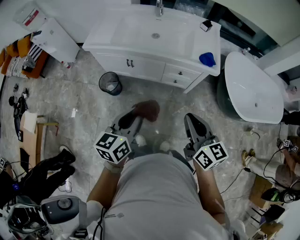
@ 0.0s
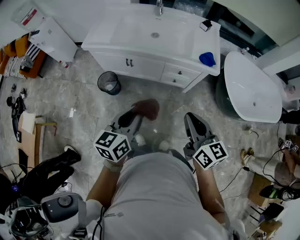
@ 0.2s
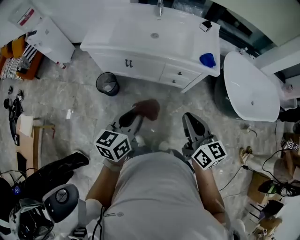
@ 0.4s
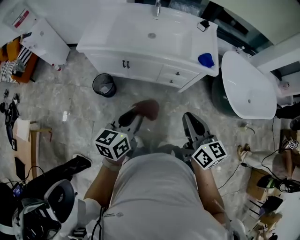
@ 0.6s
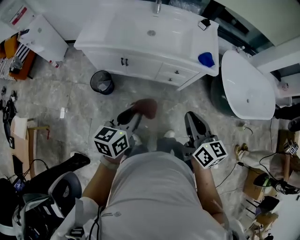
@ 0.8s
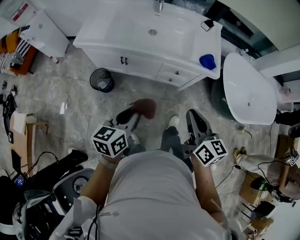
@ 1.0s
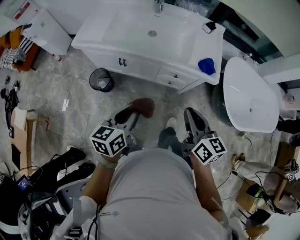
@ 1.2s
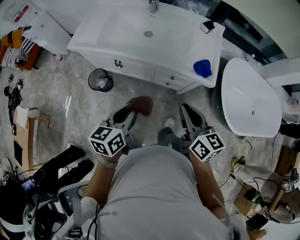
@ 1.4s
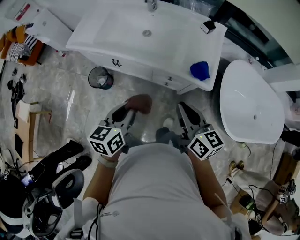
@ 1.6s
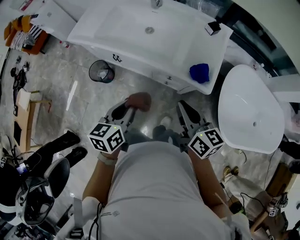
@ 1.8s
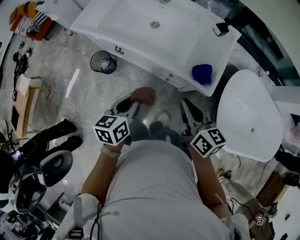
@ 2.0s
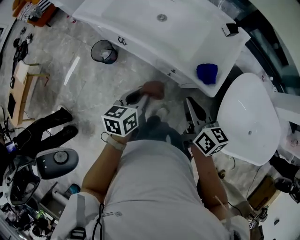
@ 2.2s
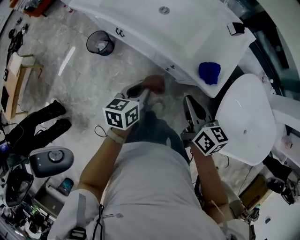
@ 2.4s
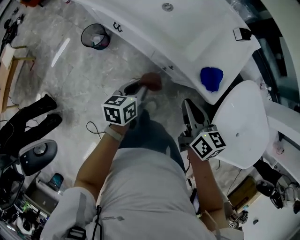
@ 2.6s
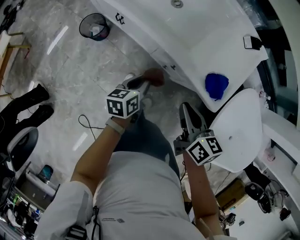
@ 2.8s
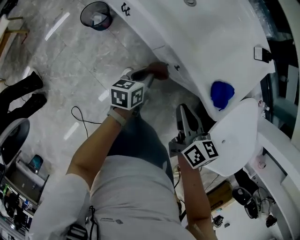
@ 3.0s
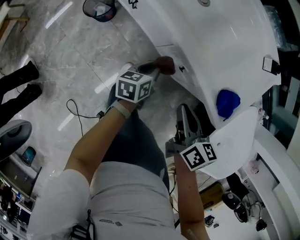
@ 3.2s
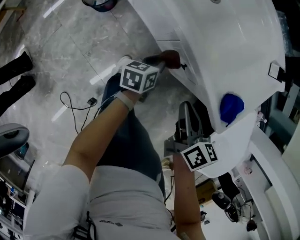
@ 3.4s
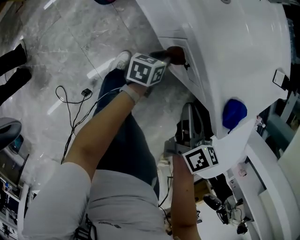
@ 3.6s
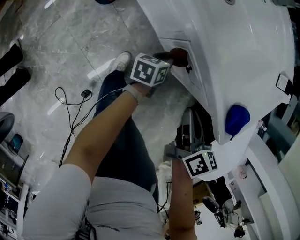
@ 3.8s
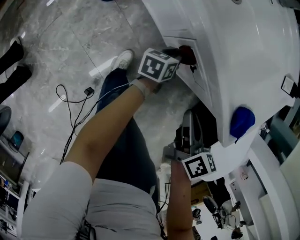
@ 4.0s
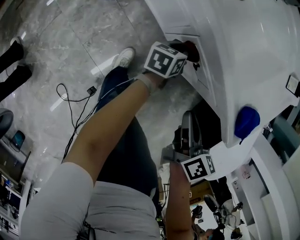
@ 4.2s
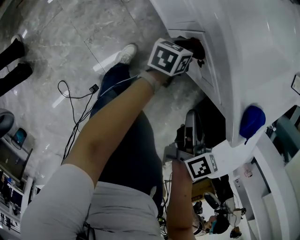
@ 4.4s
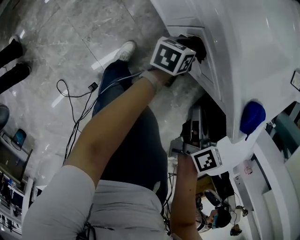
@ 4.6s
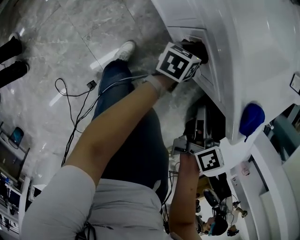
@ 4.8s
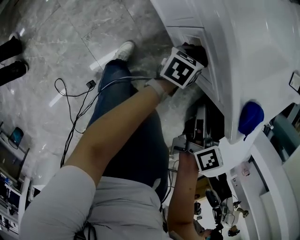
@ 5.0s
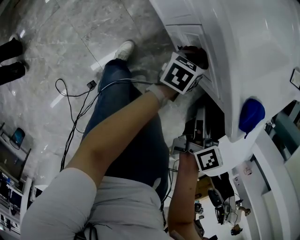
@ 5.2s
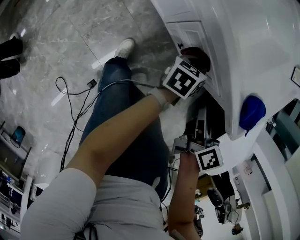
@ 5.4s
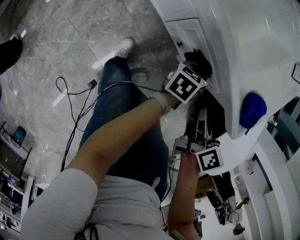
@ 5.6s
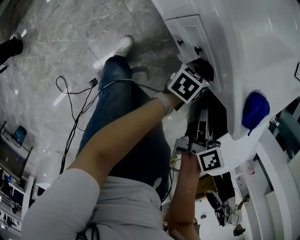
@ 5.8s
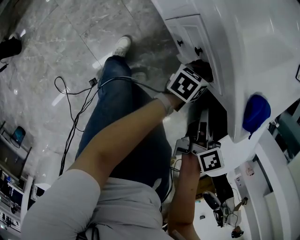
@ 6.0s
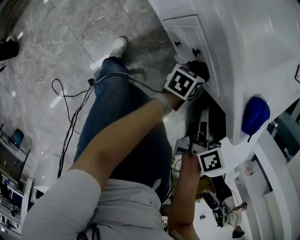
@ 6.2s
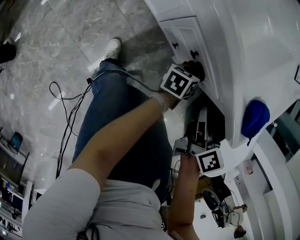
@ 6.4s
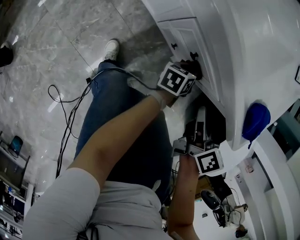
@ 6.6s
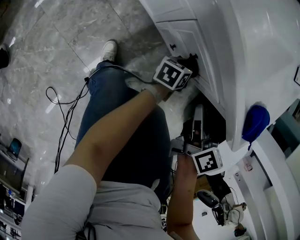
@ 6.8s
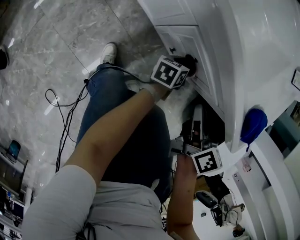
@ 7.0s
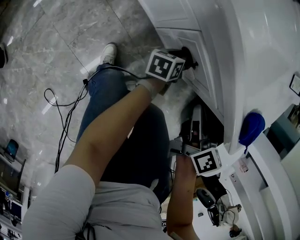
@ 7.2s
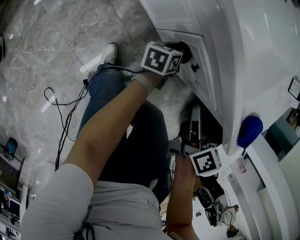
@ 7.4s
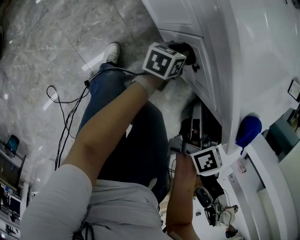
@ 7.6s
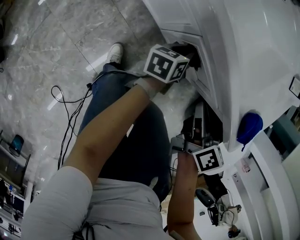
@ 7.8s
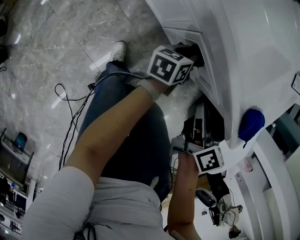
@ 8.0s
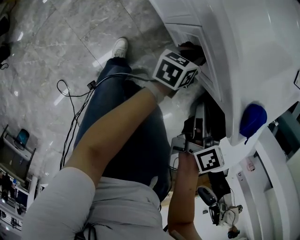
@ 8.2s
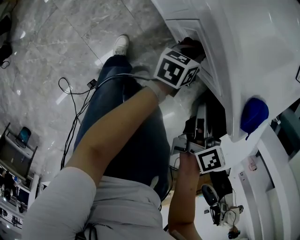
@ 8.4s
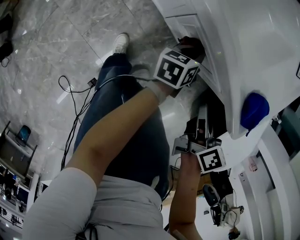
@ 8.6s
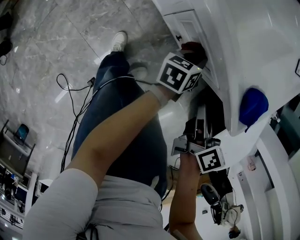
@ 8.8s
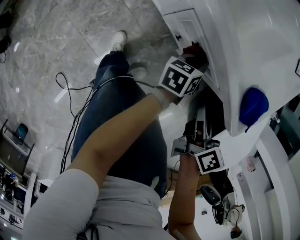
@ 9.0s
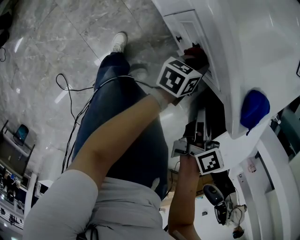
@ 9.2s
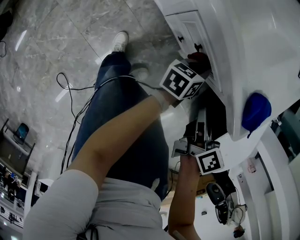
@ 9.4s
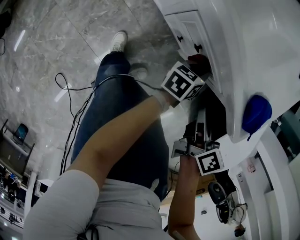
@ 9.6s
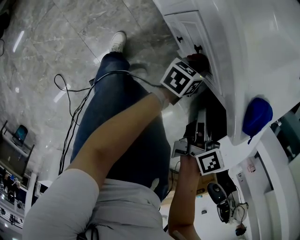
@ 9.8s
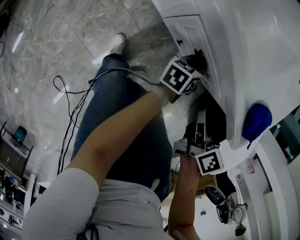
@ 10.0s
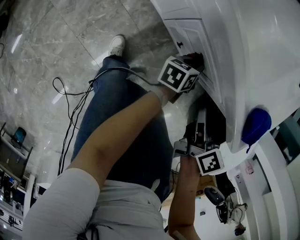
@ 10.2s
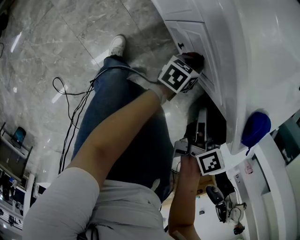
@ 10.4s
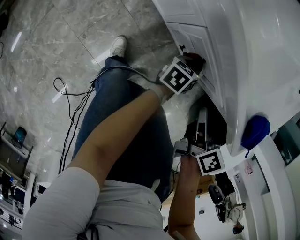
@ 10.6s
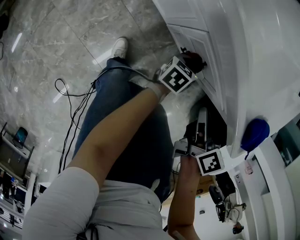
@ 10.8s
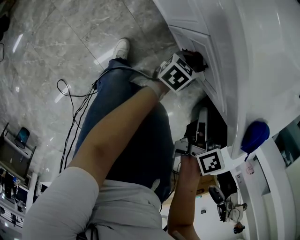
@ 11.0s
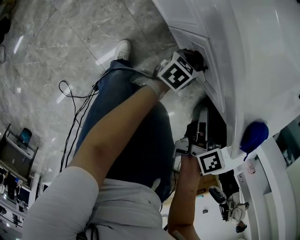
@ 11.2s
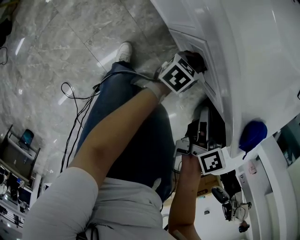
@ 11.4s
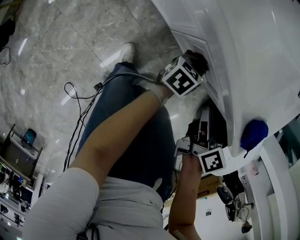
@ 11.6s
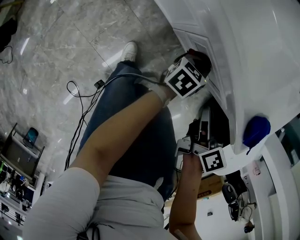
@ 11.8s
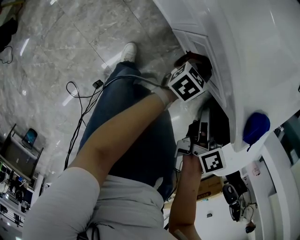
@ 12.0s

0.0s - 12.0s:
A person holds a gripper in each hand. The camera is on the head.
0.0s - 1.6s: The two grippers go roughly 20 cm forward and to the right.
1.6s - 3.0s: The left gripper travels downward and forward by roughly 30 cm, and turns by about 30 degrees; the right gripper goes about 20 cm downward and forward, and turns by roughly 30 degrees.
3.0s - 4.4s: The left gripper moves downward, forward and to the right, about 20 cm. The right gripper is displaced downward by some 15 cm.
4.4s - 6.0s: The right gripper shifts approximately 10 cm to the right, while the left gripper shifts approximately 15 cm to the right.
6.0s - 7.6s: The right gripper moves to the left, approximately 10 cm. Meanwhile the left gripper travels to the left and downward by about 15 cm.
7.6s - 9.0s: The left gripper goes some 15 cm to the right, upward and backward, while the right gripper moves to the right and backward, approximately 10 cm.
9.0s - 10.4s: The left gripper travels downward by approximately 10 cm; the right gripper ends up approximately 5 cm from where it was.
10.4s - 12.0s: The left gripper goes roughly 5 cm upward.

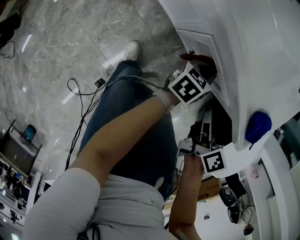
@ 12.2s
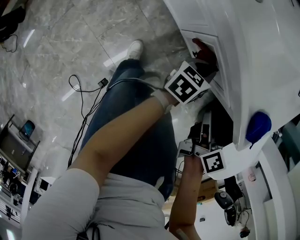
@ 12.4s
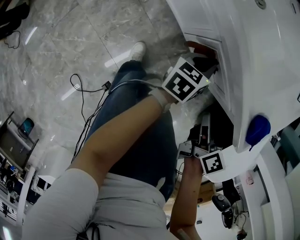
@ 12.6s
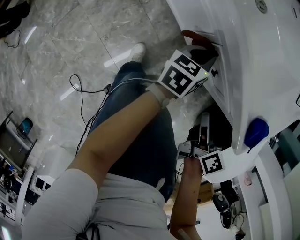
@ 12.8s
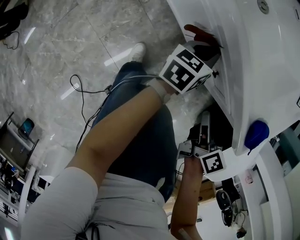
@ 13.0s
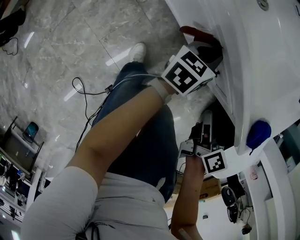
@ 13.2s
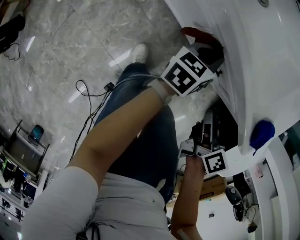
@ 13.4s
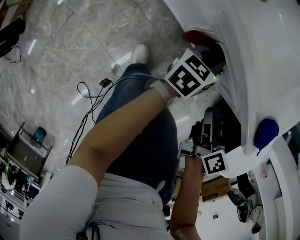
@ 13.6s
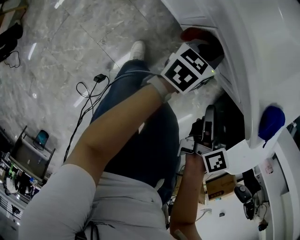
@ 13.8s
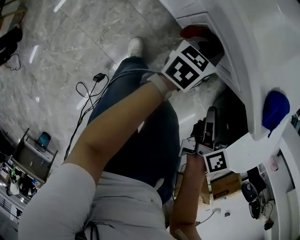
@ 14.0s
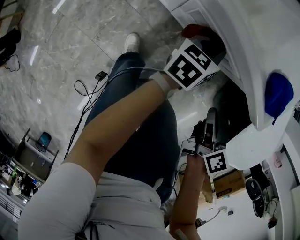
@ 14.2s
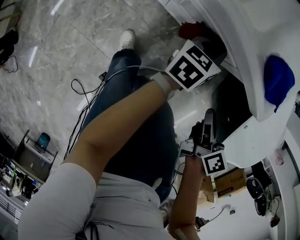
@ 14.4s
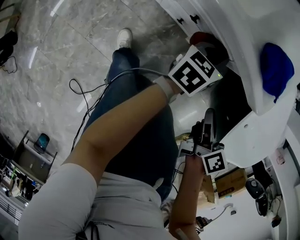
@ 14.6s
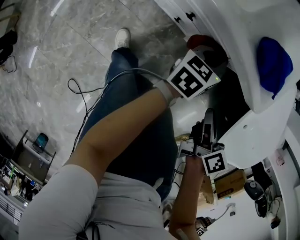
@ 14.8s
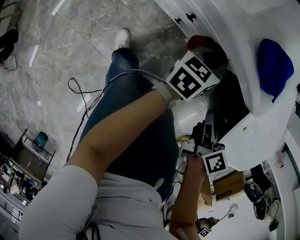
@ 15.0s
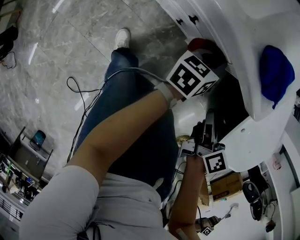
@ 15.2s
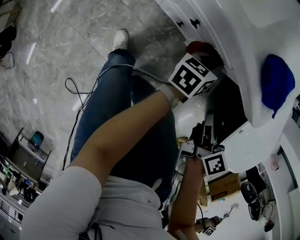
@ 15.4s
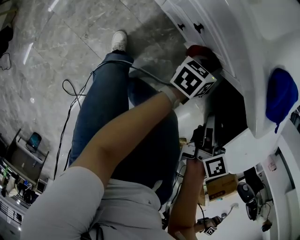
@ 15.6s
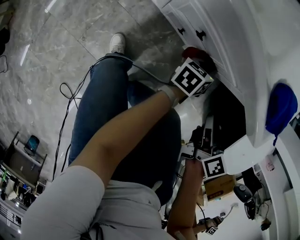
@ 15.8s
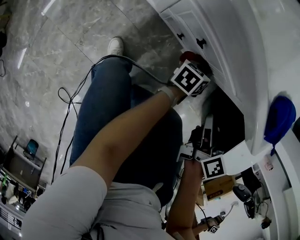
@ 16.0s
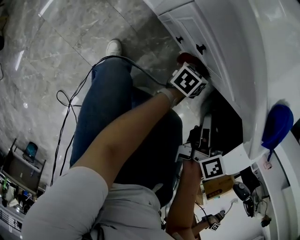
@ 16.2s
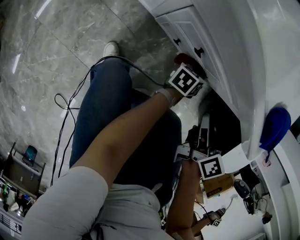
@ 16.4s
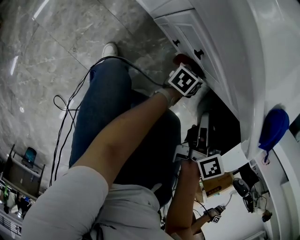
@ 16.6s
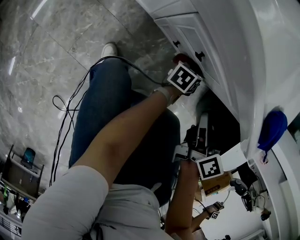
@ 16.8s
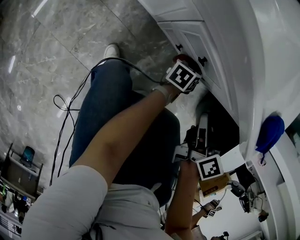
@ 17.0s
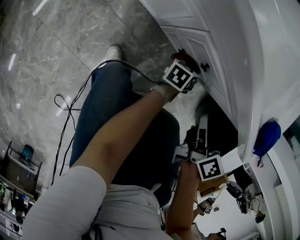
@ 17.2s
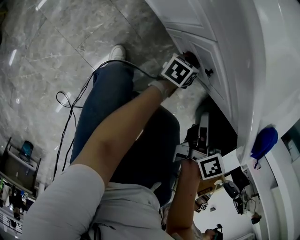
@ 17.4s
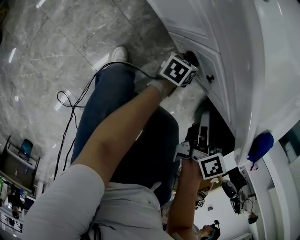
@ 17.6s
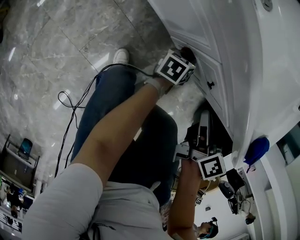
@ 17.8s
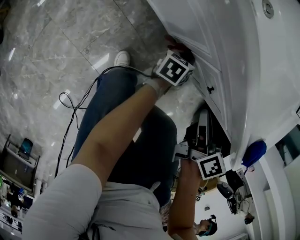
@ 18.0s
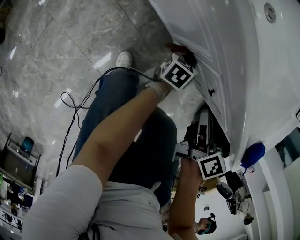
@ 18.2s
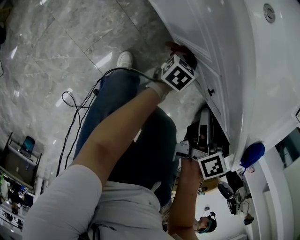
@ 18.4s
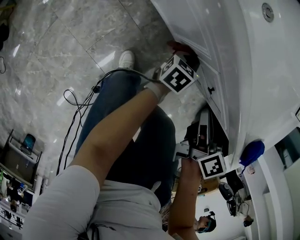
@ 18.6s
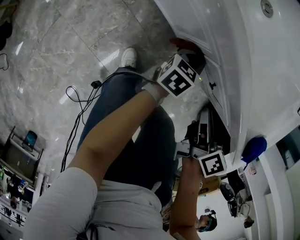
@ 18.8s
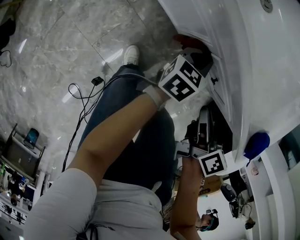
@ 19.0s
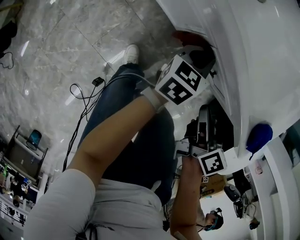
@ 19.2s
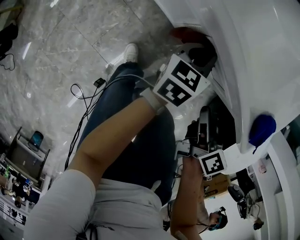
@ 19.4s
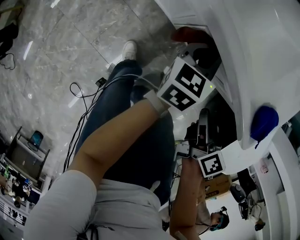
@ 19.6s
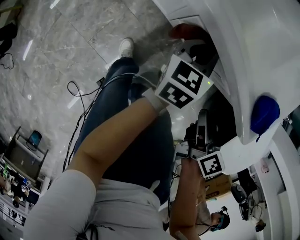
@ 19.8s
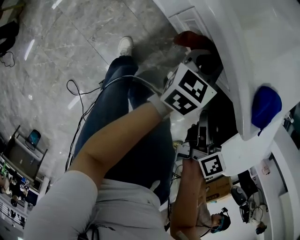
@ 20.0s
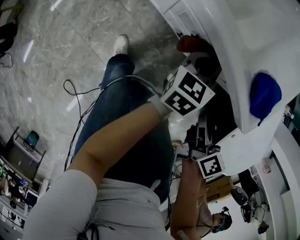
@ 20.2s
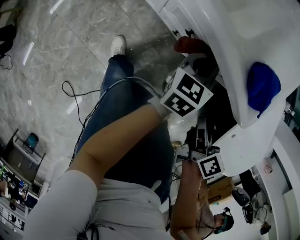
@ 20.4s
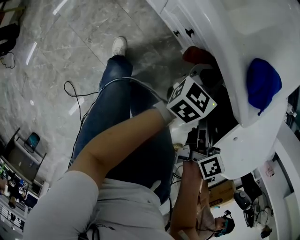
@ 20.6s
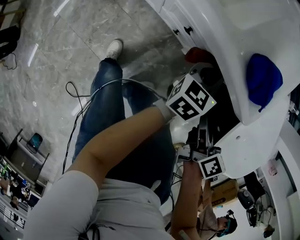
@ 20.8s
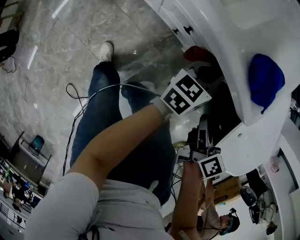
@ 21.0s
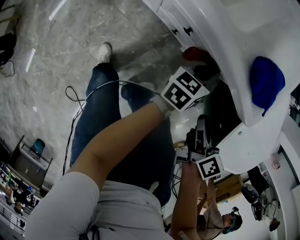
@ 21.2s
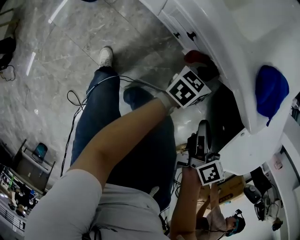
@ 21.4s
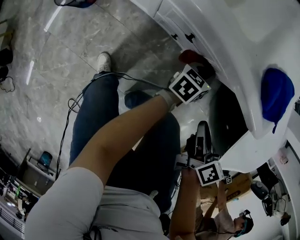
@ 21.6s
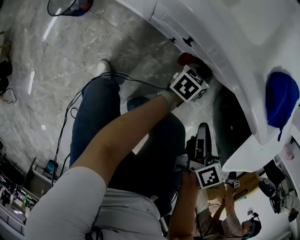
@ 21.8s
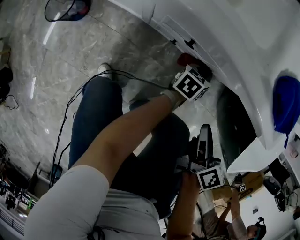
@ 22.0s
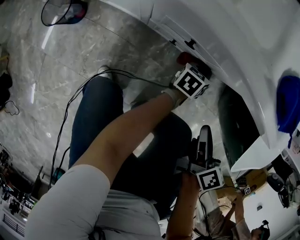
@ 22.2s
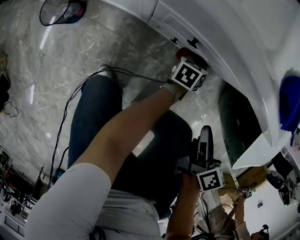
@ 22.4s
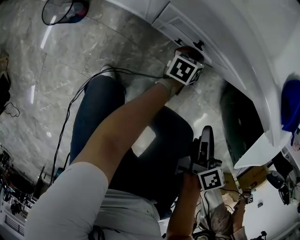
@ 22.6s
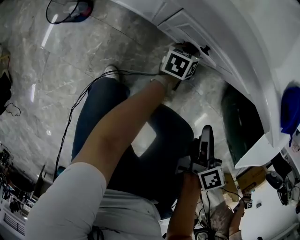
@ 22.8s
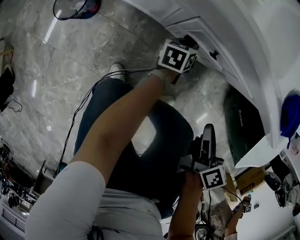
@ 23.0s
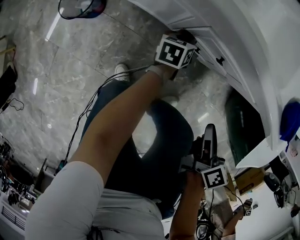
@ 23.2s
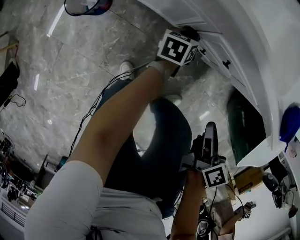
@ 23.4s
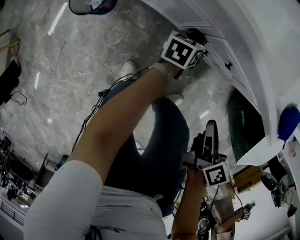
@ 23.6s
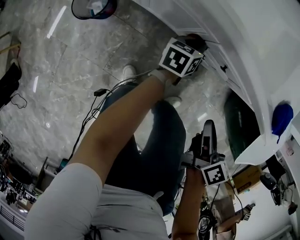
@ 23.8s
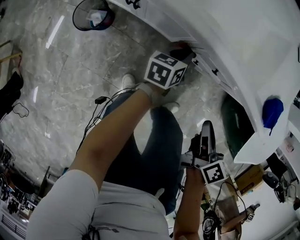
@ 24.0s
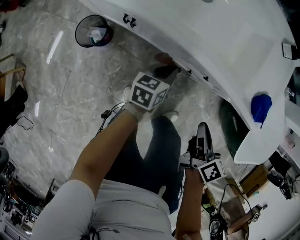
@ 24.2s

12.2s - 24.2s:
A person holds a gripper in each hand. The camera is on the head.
12.2s - 13.8s: The left gripper heads to the left, covering roughly 5 cm.
13.8s - 15.2s: Both grippers travel together to the right, some 20 cm.
15.2s - 16.6s: The left gripper shifts some 15 cm downward, while the right gripper moves to the left and forward, approximately 10 cm.
16.6s - 18.2s: The two grippers go roughly 20 cm to the left.
18.2s - 19.8s: The left gripper heads upward, covering some 20 cm, and changes its angle by approximately 30 degrees; the right gripper shifts roughly 15 cm to the right and backward.
19.8s - 21.2s: The left gripper goes approximately 20 cm to the right and backward, while the right gripper is displaced to the right and backward by roughly 10 cm.
21.2s - 22.6s: The right gripper shifts by some 5 cm. Meanwhile the left gripper is displaced downward by approximately 20 cm.
22.6s - 24.2s: The right gripper travels to the left and upward by approximately 20 cm. Meanwhile the left gripper goes approximately 35 cm to the left and upward.
